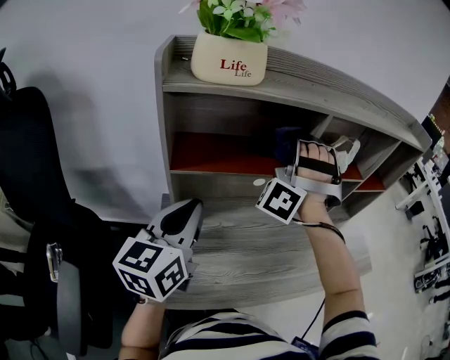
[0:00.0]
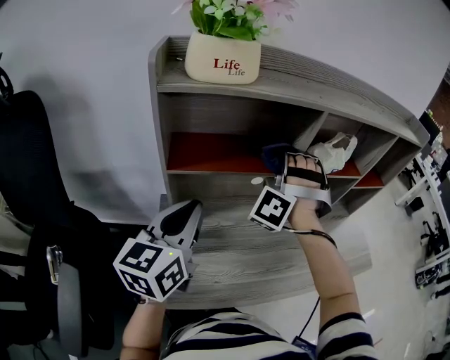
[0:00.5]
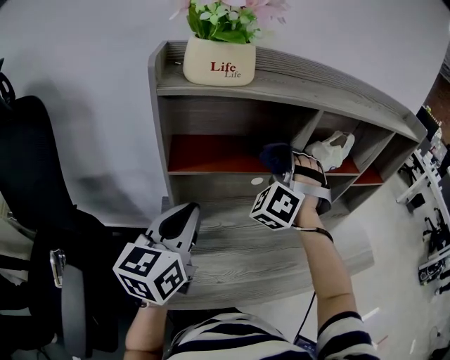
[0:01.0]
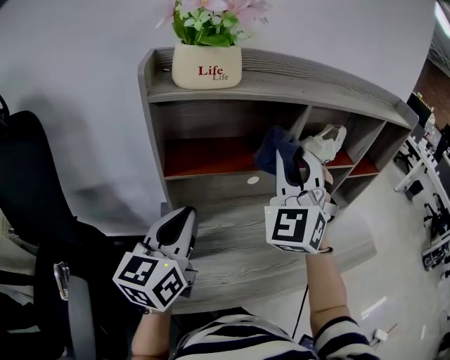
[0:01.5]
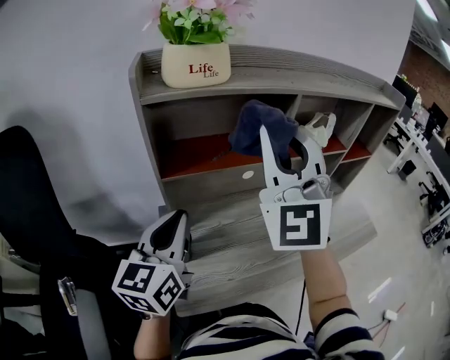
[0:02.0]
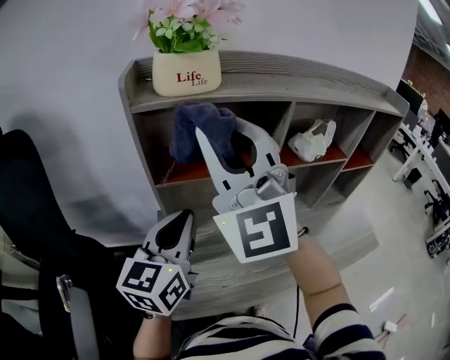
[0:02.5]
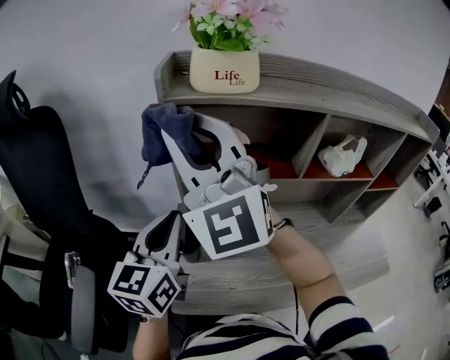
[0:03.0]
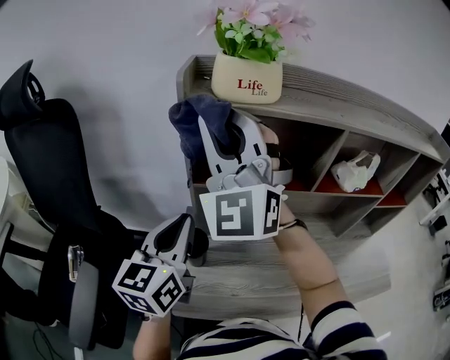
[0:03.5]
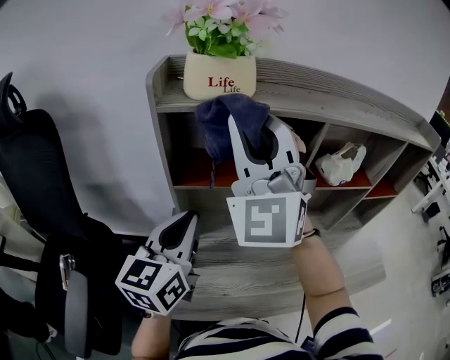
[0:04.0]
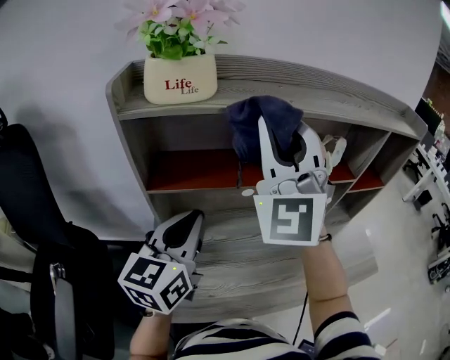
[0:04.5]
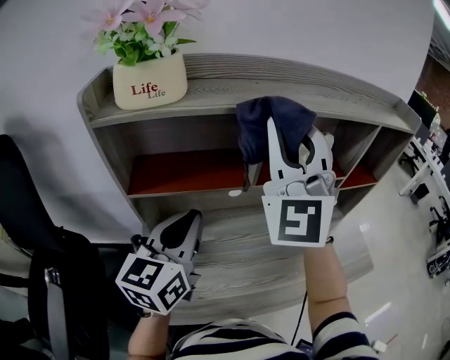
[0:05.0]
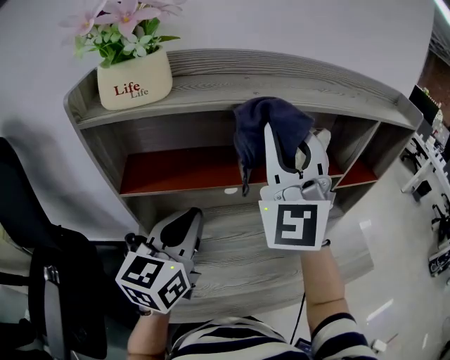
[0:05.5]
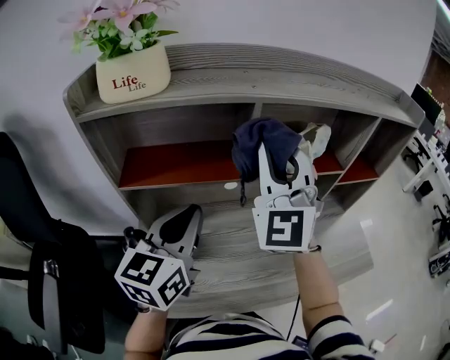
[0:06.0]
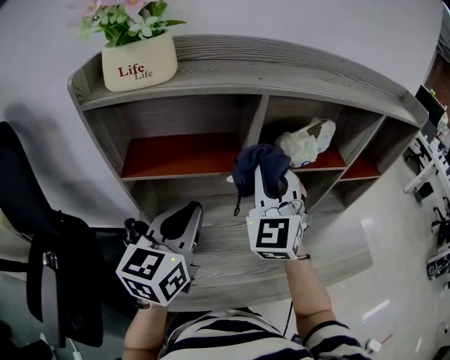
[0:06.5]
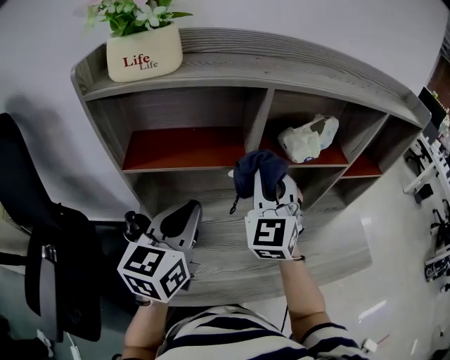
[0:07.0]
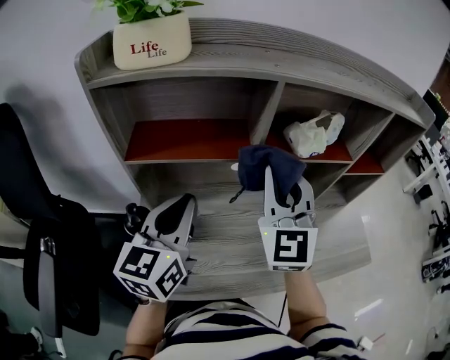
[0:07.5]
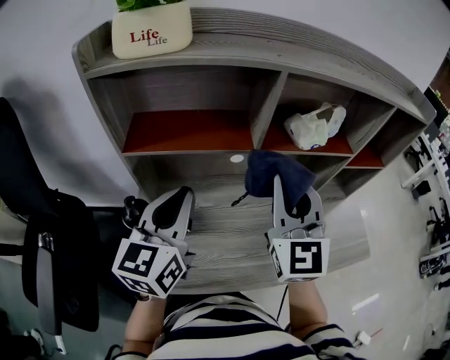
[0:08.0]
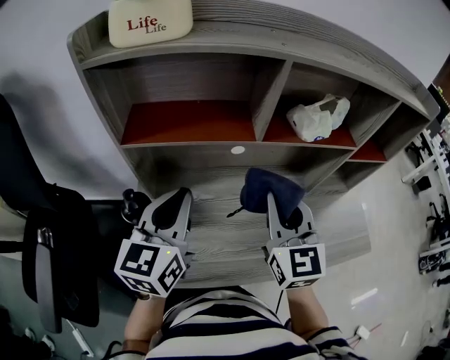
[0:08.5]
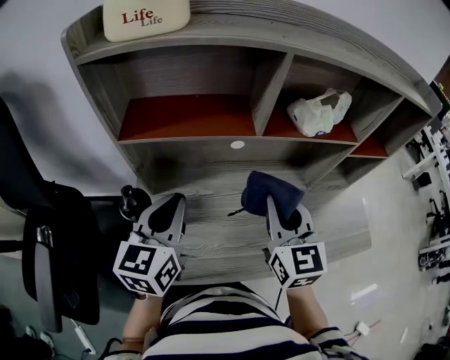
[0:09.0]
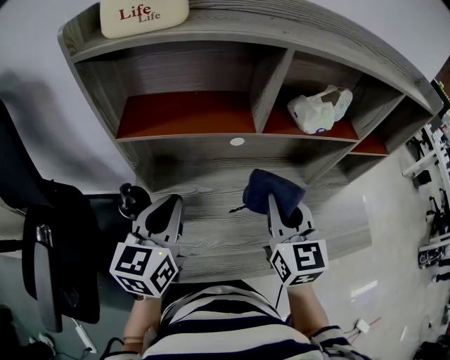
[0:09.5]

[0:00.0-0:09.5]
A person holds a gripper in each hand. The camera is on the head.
0:00.0 to 0:02.0: The right gripper travels backward and upward by some 20 cm, and rolls clockwise, seen from behind, by roughly 60 degrees.
0:02.0 to 0:04.0: The right gripper moves to the left and forward, roughly 10 cm.
0:04.0 to 0:05.5: The grippers both shift to the right by about 15 cm.
0:05.5 to 0:07.5: The right gripper moves downward, roughly 15 cm, and changes its angle by some 20 degrees.
0:07.5 to 0:09.5: The left gripper is displaced downward by roughly 5 cm, while the right gripper moves downward and backward, about 15 cm, and turns by some 30 degrees.

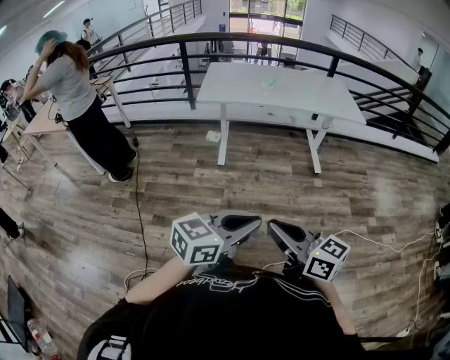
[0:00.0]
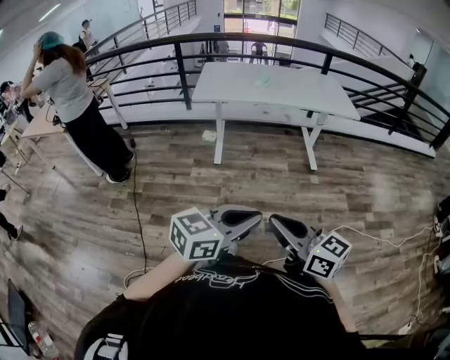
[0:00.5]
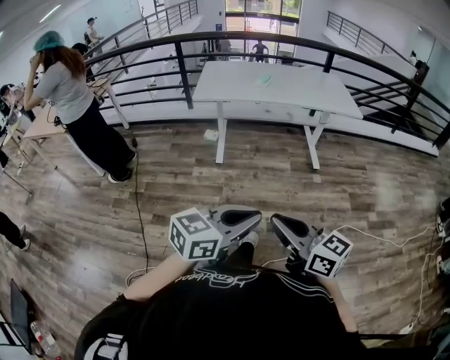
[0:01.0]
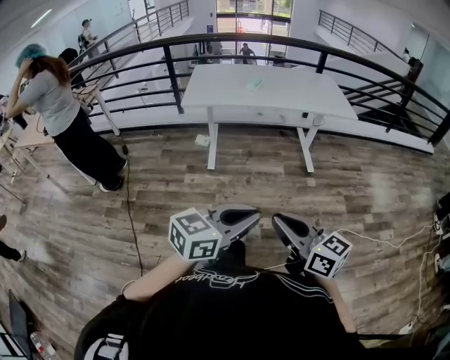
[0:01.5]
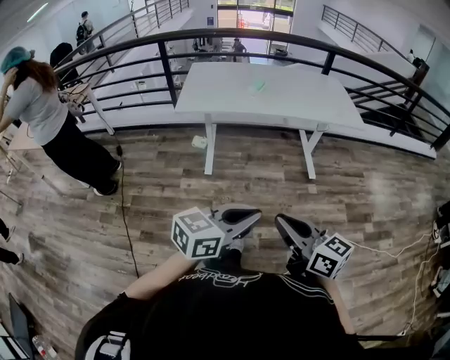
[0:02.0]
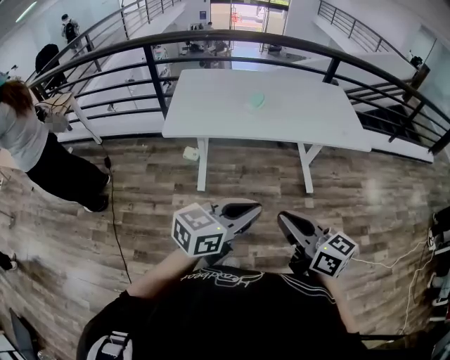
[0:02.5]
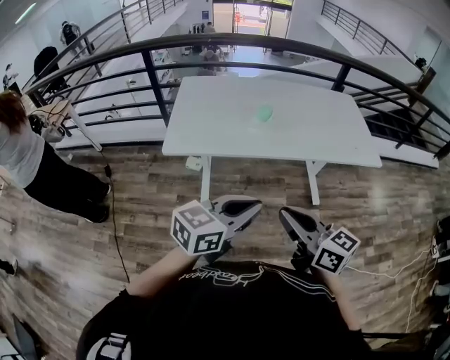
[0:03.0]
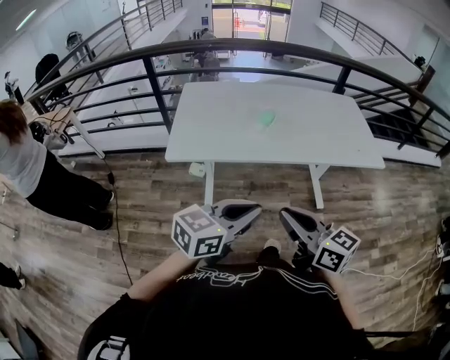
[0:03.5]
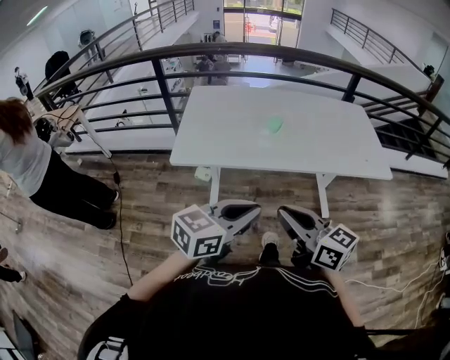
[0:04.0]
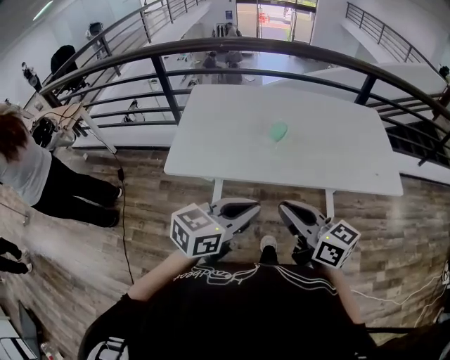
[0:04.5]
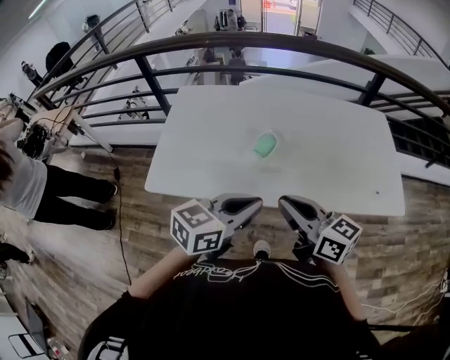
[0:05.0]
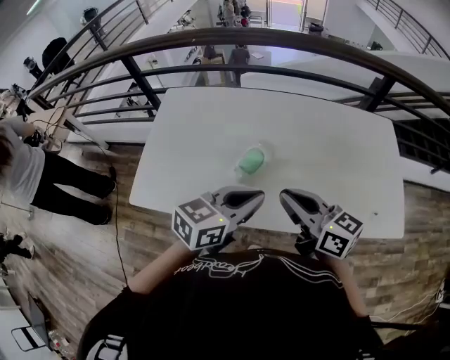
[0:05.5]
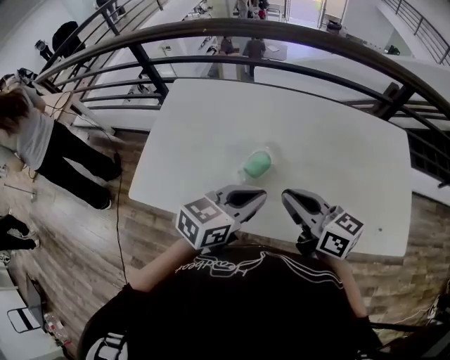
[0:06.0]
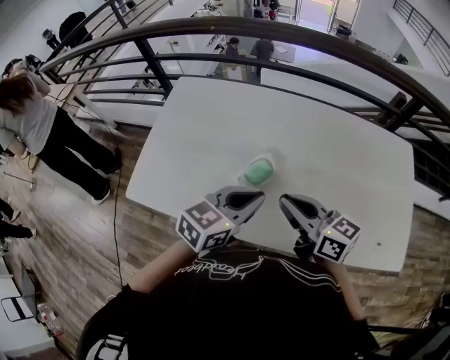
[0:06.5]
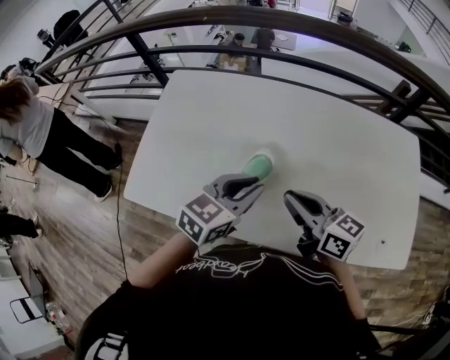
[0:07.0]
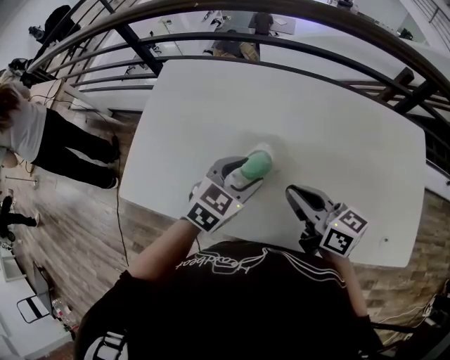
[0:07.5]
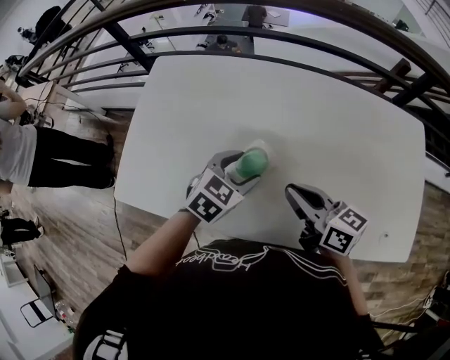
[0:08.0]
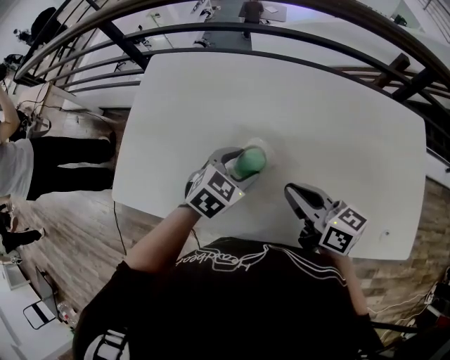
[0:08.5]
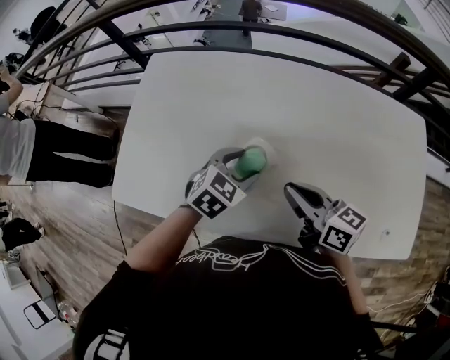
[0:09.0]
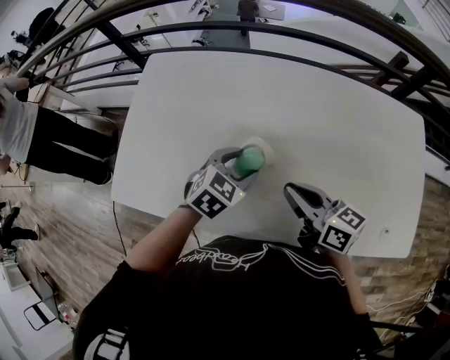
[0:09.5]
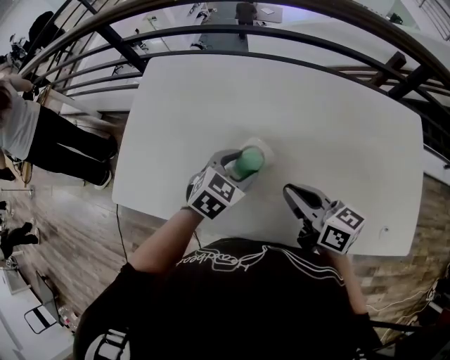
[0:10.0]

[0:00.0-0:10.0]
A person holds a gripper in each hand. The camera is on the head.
0:00.0 to 0:02.0: The two grippers go roughly 25 cm forward.
0:02.0 to 0:04.0: The pair of grippers is taken forward, approximately 40 cm.
0:04.0 to 0:06.0: The pair of grippers is taken forward, about 50 cm.
0:06.0 to 0:08.0: The left gripper goes approximately 20 cm downward and forward, rotates about 30 degrees, and opens up. Meanwhile the right gripper is displaced downward and forward by about 15 cm.
0:08.0 to 0:10.0: The grippers make only small movements.

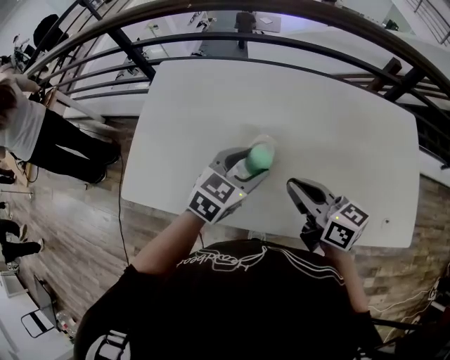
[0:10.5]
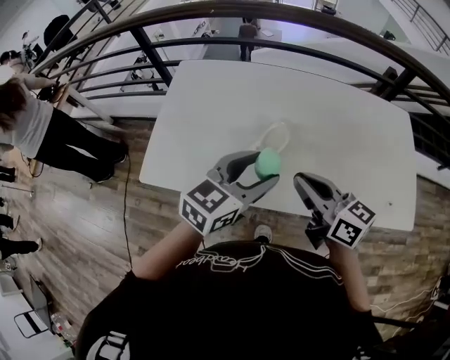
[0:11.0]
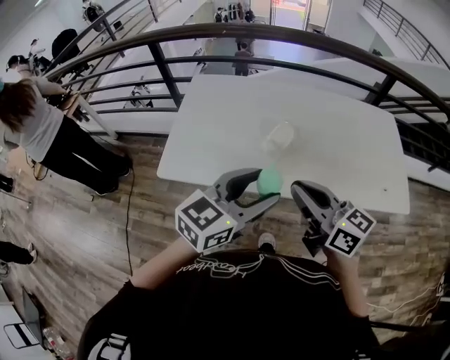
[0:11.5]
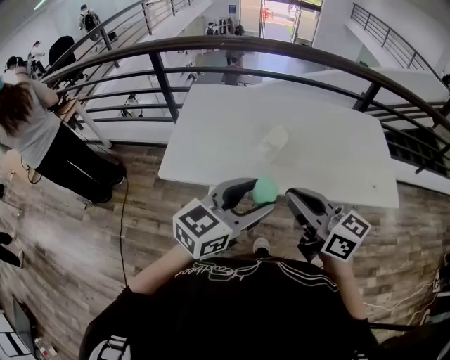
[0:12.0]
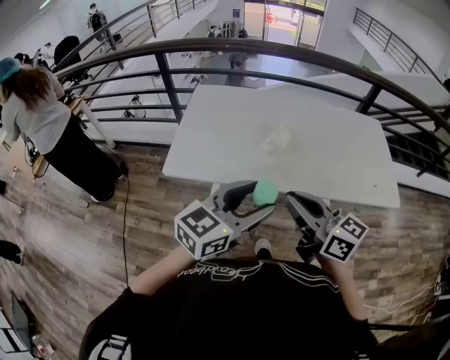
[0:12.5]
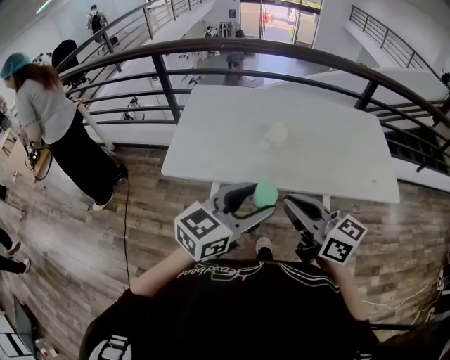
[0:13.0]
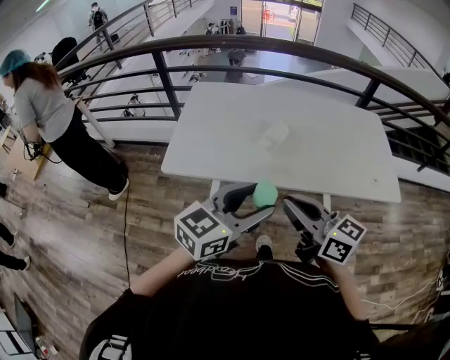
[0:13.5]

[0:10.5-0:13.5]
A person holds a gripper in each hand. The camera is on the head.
0:10.5 to 0:12.0: Both grippers travel together backward and upward, about 40 cm. The left gripper changes its angle by some 30 degrees.
0:12.0 to 0:13.5: There are only small adjustments of the grippers.

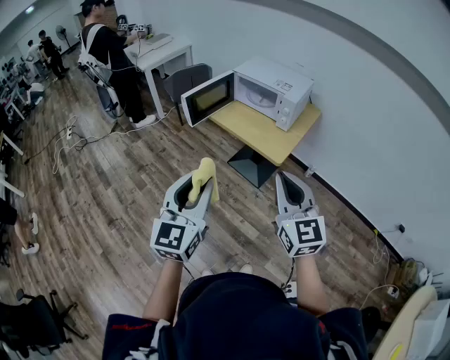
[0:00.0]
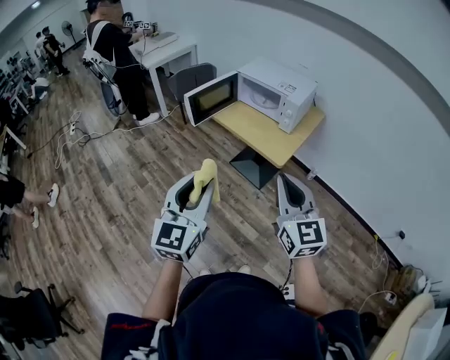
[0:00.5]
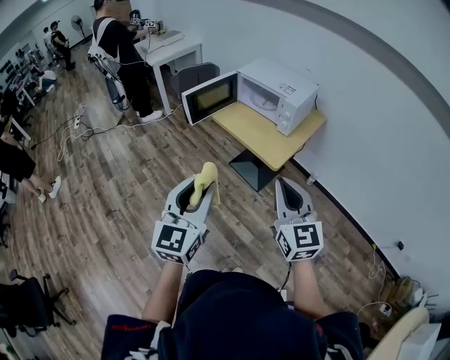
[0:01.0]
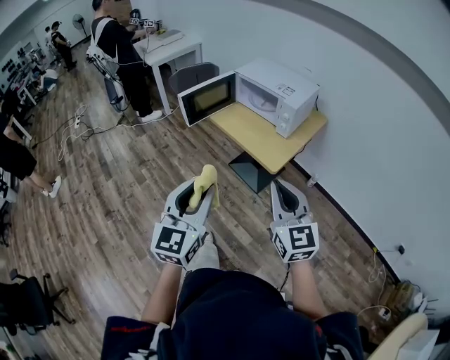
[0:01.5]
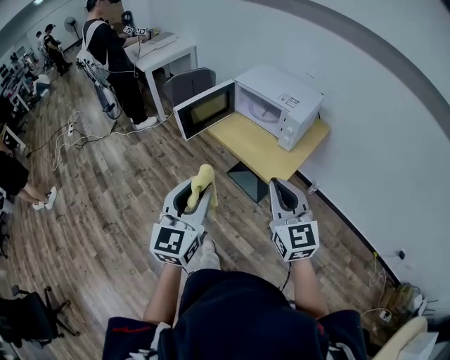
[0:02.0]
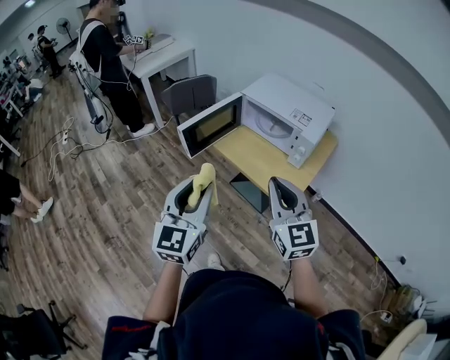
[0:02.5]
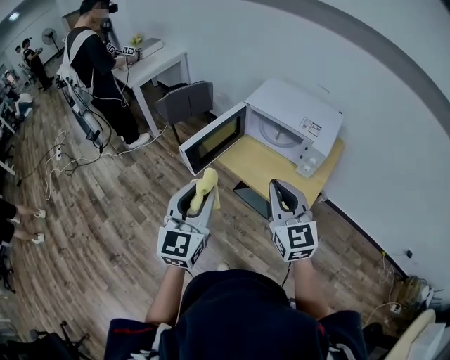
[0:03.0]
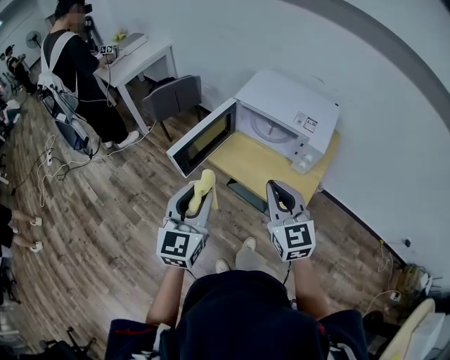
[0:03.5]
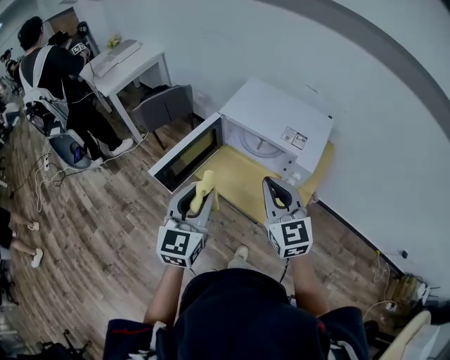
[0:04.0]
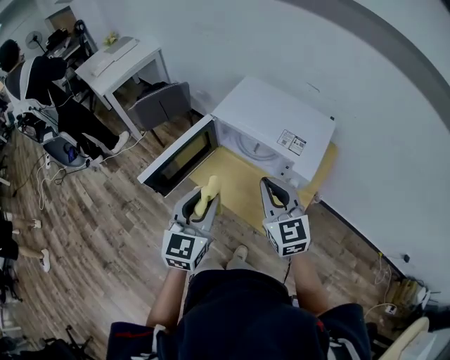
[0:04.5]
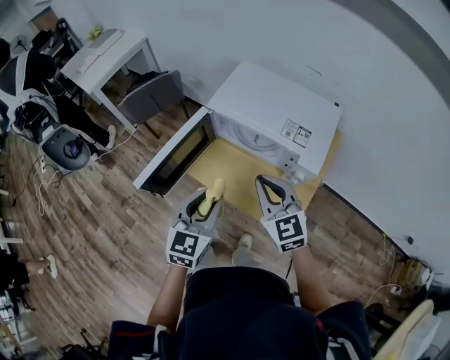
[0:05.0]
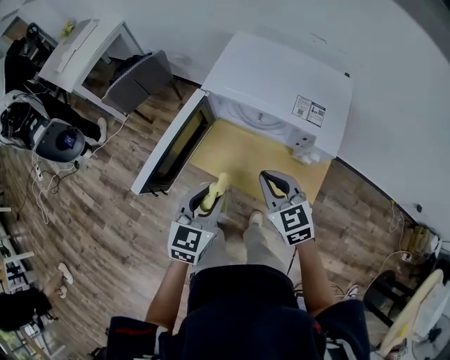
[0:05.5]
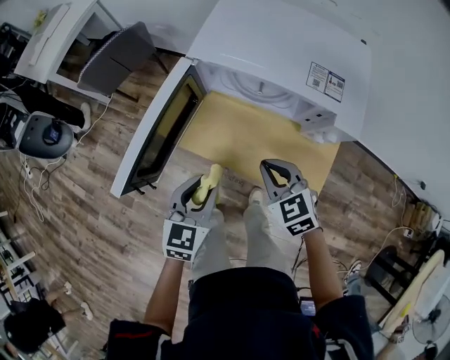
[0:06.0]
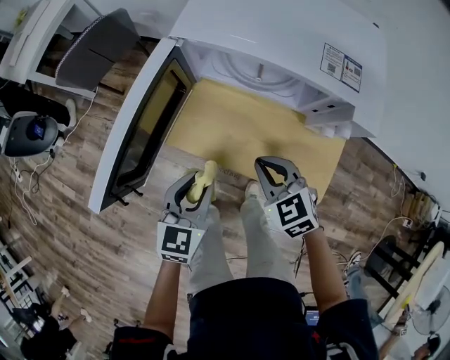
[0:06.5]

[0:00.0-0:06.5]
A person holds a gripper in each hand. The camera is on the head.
0:00.0 to 0:02.0: Both grippers travel together forward, approximately 15 cm.
0:02.0 to 0:04.5: The grippers both shift forward by about 35 cm.
0:04.5 to 0:06.5: The two grippers go some 25 cm downward. The left gripper changes its angle by roughly 30 degrees. Meanwhile the right gripper tips its fingers downward by roughly 30 degrees.
